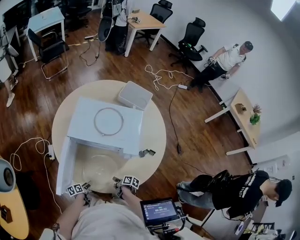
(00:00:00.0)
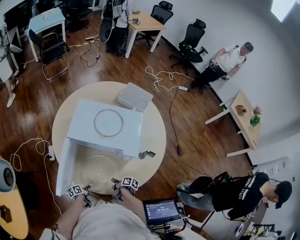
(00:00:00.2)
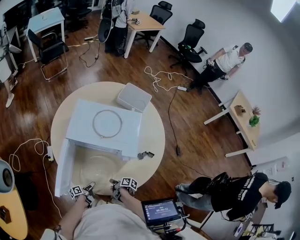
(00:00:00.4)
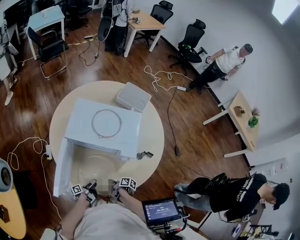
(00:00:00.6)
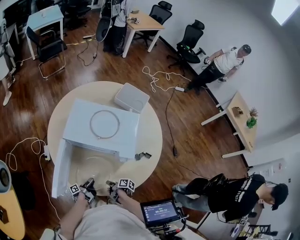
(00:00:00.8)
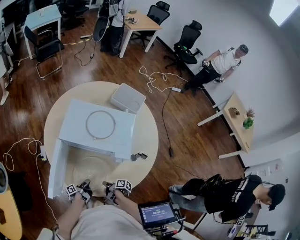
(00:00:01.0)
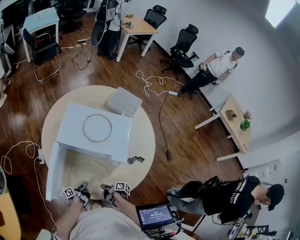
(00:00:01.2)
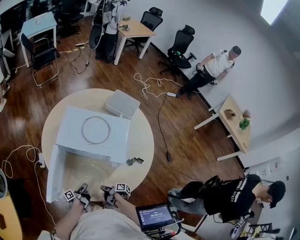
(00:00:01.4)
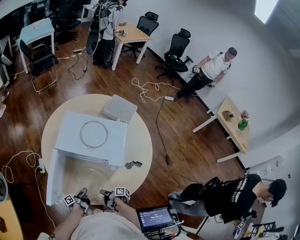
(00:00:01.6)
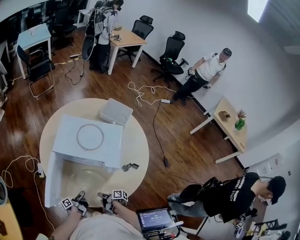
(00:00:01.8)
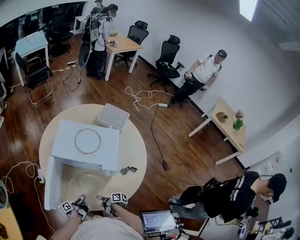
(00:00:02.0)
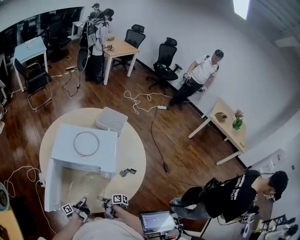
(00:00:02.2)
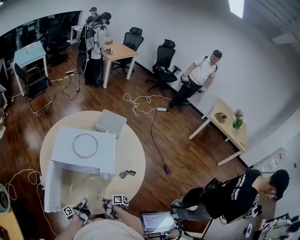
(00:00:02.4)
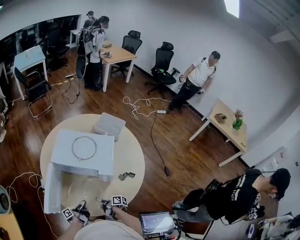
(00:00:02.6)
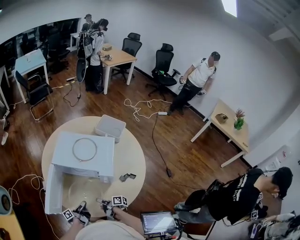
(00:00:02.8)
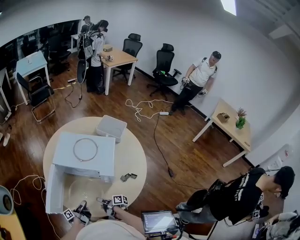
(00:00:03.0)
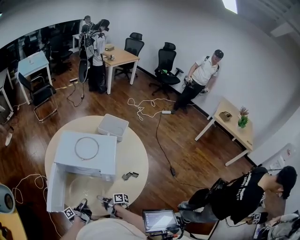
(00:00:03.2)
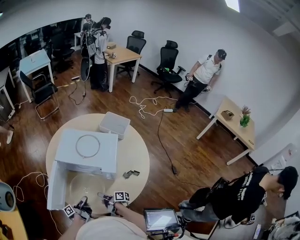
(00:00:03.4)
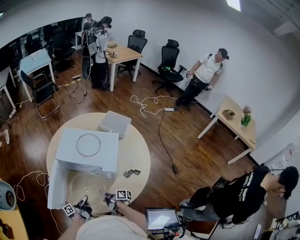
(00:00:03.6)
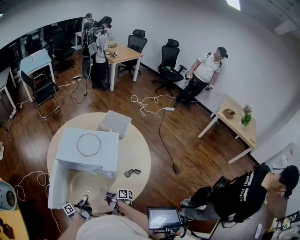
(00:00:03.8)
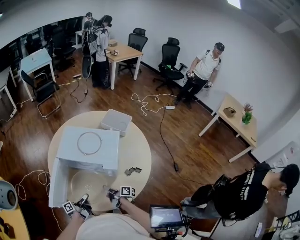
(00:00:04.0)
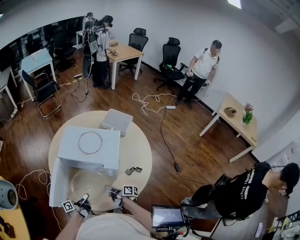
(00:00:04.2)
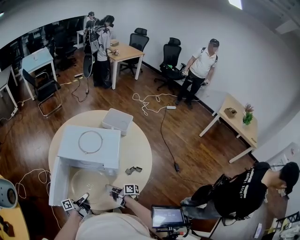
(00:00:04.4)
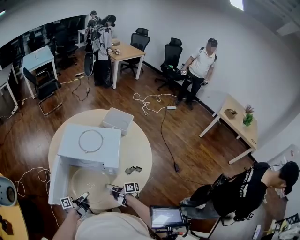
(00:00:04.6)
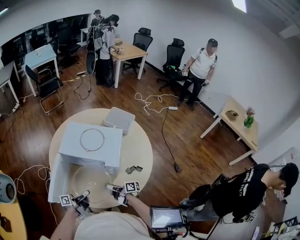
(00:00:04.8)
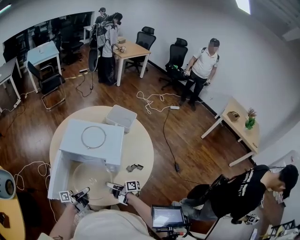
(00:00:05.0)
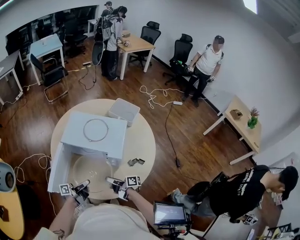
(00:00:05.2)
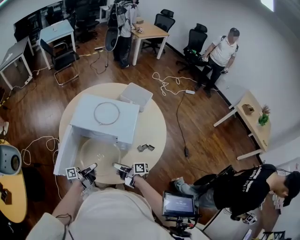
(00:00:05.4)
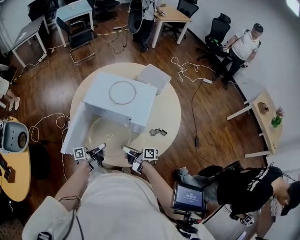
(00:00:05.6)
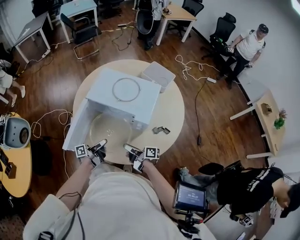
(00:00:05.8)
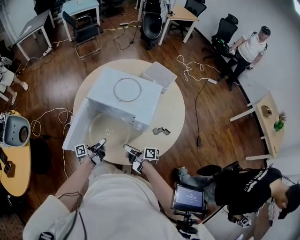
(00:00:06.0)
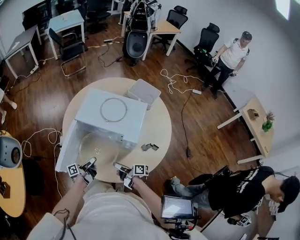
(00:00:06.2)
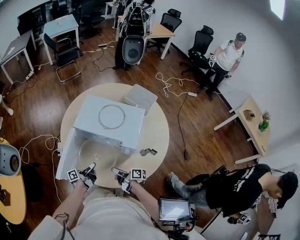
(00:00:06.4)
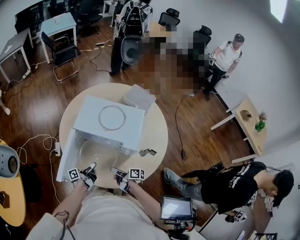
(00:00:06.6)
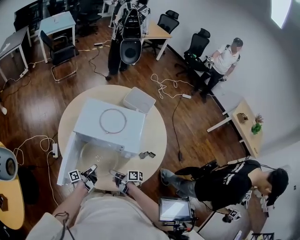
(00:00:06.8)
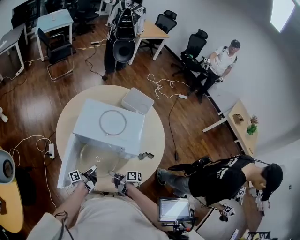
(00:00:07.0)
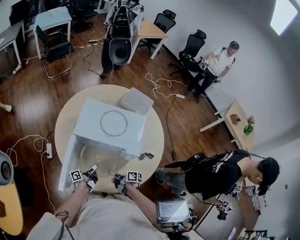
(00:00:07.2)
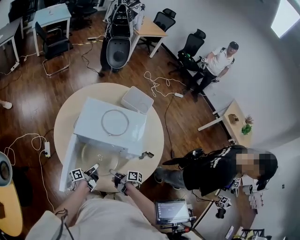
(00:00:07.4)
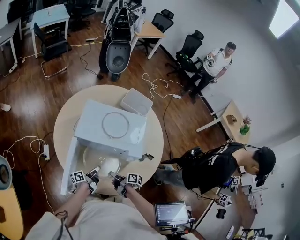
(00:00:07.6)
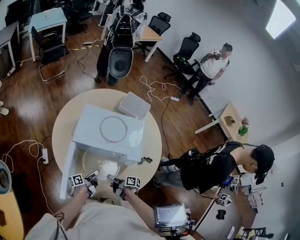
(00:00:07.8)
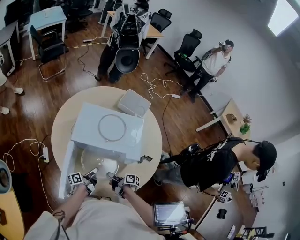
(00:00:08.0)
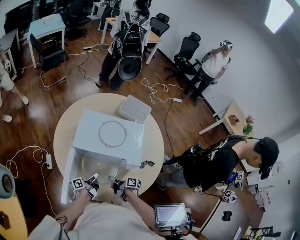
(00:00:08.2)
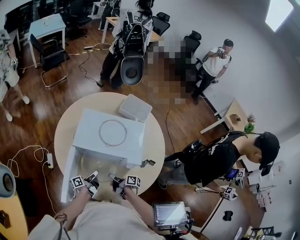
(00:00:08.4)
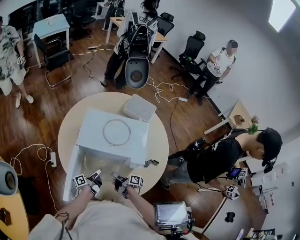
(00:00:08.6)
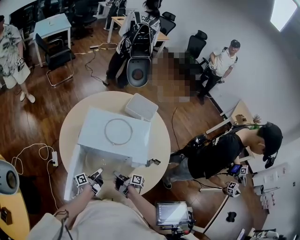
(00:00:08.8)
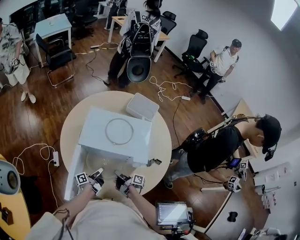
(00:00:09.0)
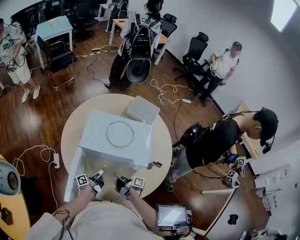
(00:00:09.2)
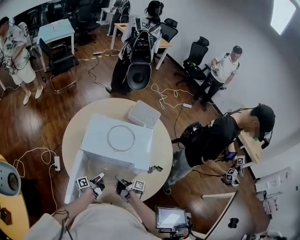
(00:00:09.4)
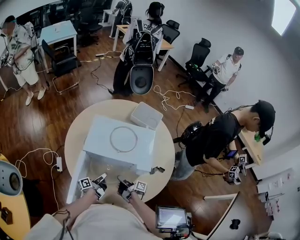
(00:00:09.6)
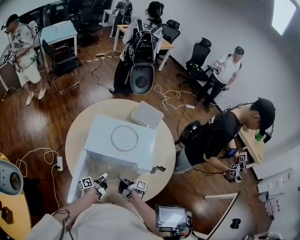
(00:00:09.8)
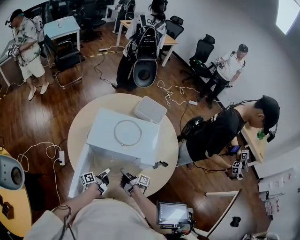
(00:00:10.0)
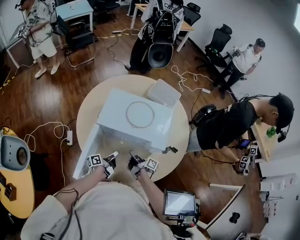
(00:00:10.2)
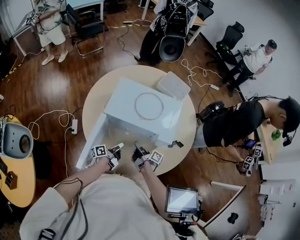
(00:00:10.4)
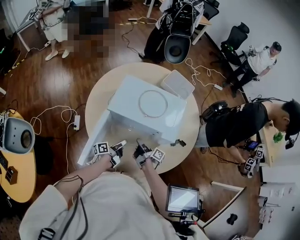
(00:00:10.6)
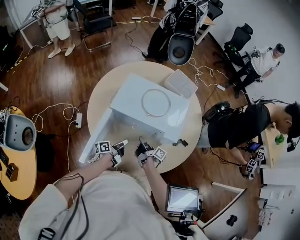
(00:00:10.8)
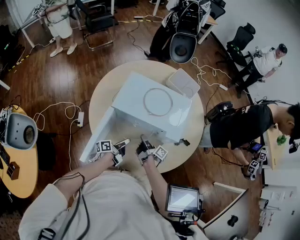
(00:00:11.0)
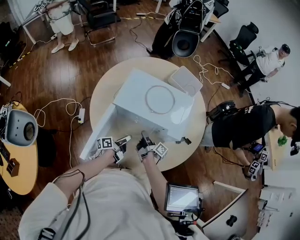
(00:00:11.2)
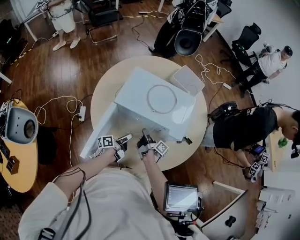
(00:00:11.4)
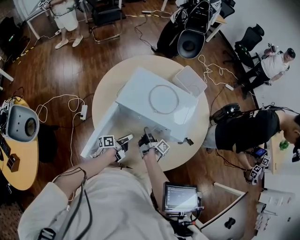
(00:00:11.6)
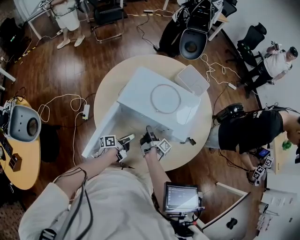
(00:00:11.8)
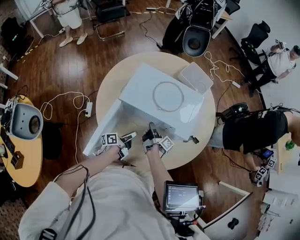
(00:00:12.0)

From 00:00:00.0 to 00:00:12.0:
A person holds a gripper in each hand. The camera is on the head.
From 00:00:00.0 to 00:00:01.6: The left gripper moves to the right and upward, roughly 10 cm, rotates about 40 degrees, and closes its fingers.
From 00:00:01.6 to 00:00:03.0: Both grippers move upward, roughly 10 cm. The right gripper swivels about 20 degrees, and opens.
From 00:00:03.0 to 00:00:04.4: The right gripper heads upward and to the right, covering about 10 cm. Meanwhile the left gripper is displaced upward by roughly 5 cm.
From 00:00:04.4 to 00:00:06.0: The right gripper shifts by some 5 cm.
From 00:00:06.0 to 00:00:07.6: The left gripper travels forward and downward by about 10 cm. Meanwhile the right gripper heads downward, to the left and forward, covering some 10 cm, and rotates about 30 degrees.
From 00:00:07.6 to 00:00:09.0: The right gripper ends up some 5 cm from where it was, and closes its fingers.
From 00:00:09.0 to 00:00:10.4: The grippers stay close to where they were, moving slightly.
From 00:00:10.4 to 00:00:12.0: The right gripper travels forward by about 5 cm.

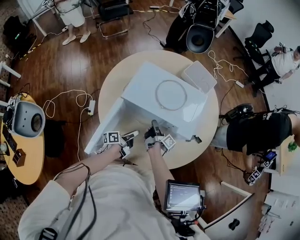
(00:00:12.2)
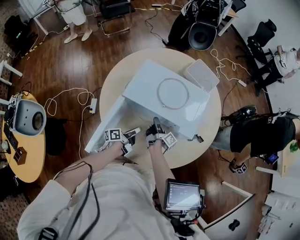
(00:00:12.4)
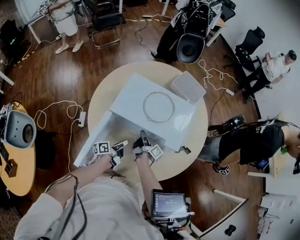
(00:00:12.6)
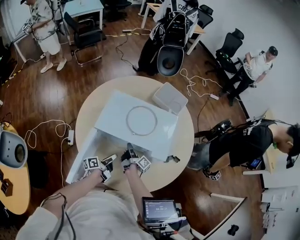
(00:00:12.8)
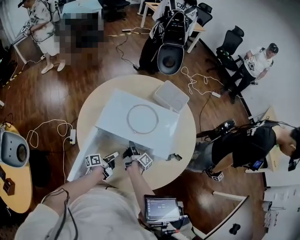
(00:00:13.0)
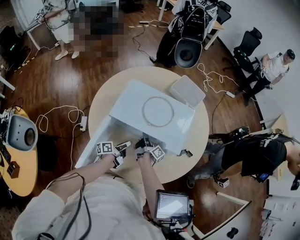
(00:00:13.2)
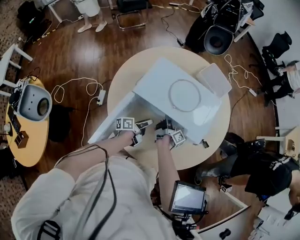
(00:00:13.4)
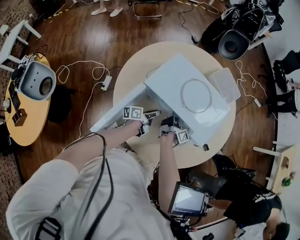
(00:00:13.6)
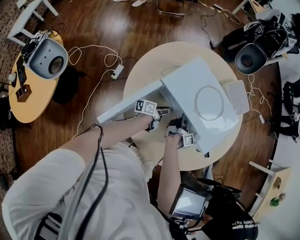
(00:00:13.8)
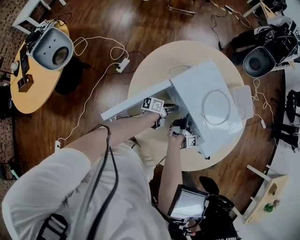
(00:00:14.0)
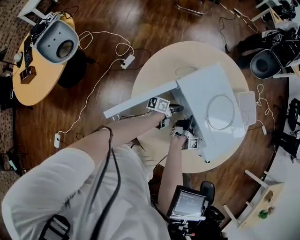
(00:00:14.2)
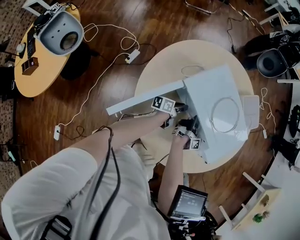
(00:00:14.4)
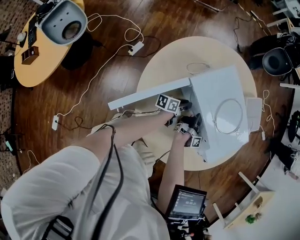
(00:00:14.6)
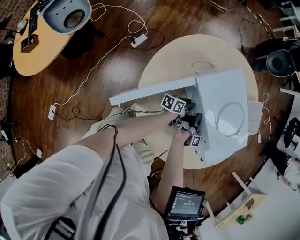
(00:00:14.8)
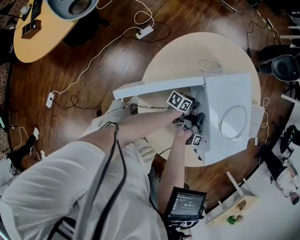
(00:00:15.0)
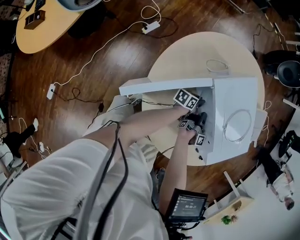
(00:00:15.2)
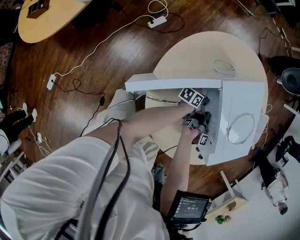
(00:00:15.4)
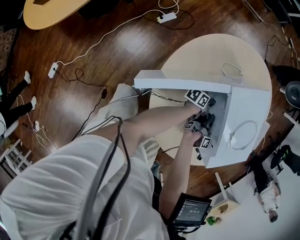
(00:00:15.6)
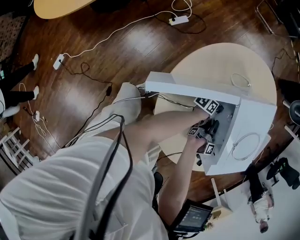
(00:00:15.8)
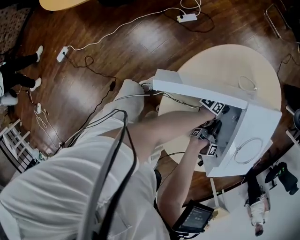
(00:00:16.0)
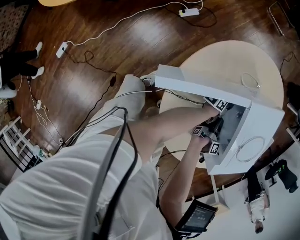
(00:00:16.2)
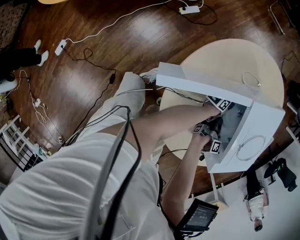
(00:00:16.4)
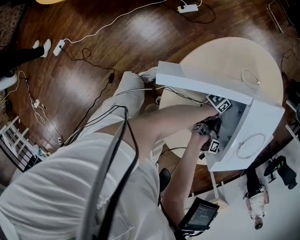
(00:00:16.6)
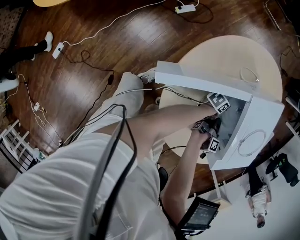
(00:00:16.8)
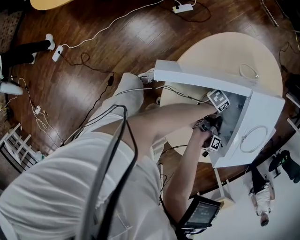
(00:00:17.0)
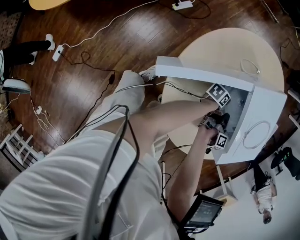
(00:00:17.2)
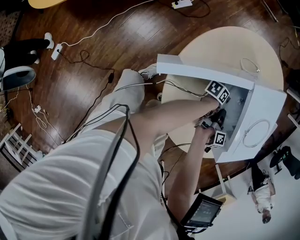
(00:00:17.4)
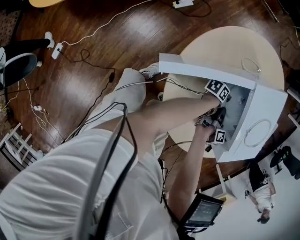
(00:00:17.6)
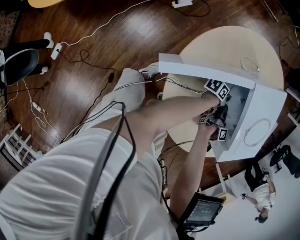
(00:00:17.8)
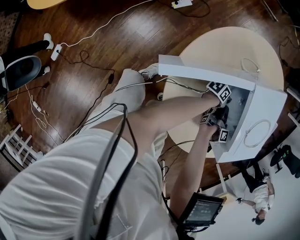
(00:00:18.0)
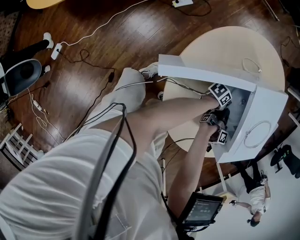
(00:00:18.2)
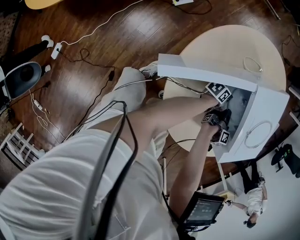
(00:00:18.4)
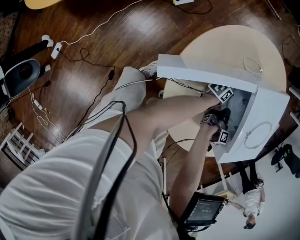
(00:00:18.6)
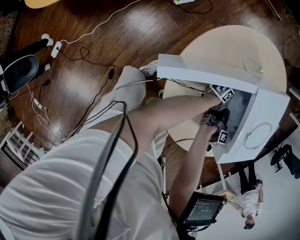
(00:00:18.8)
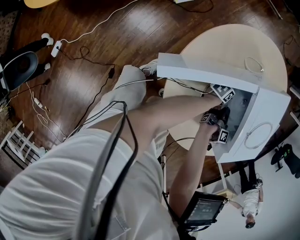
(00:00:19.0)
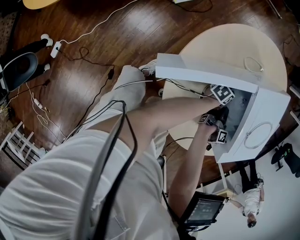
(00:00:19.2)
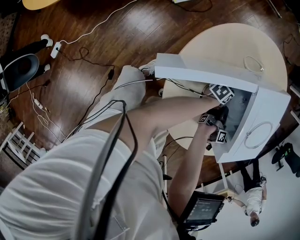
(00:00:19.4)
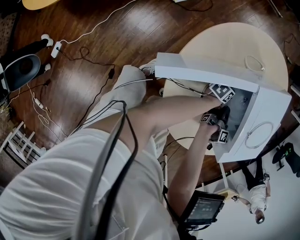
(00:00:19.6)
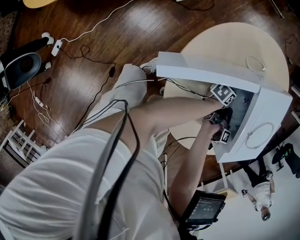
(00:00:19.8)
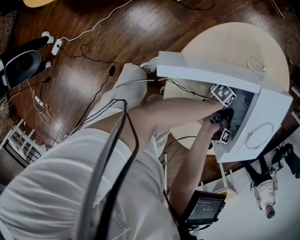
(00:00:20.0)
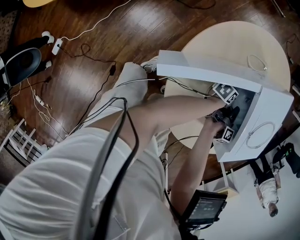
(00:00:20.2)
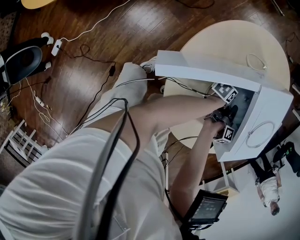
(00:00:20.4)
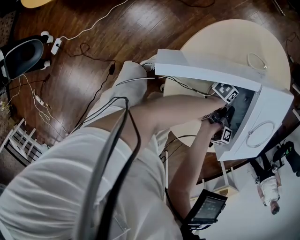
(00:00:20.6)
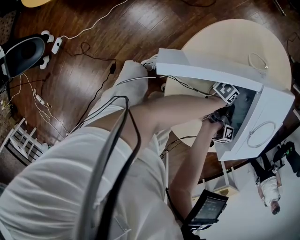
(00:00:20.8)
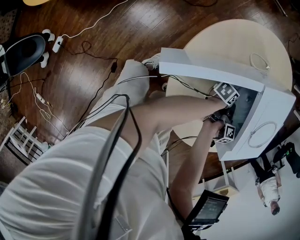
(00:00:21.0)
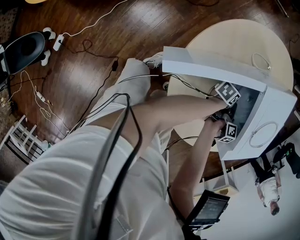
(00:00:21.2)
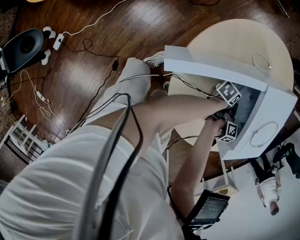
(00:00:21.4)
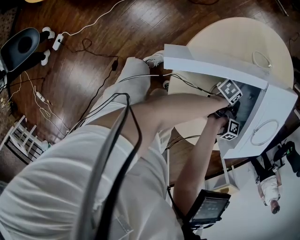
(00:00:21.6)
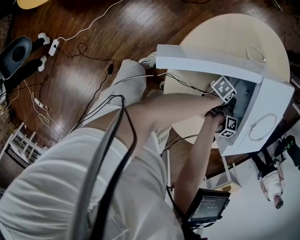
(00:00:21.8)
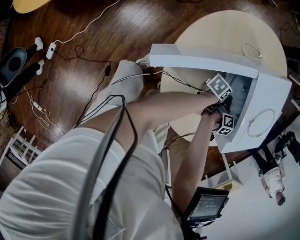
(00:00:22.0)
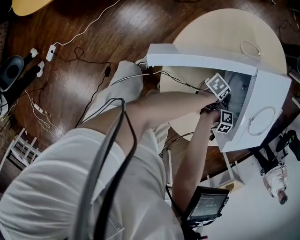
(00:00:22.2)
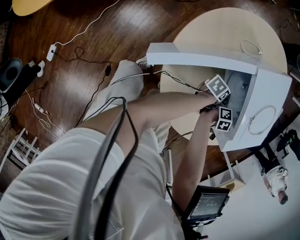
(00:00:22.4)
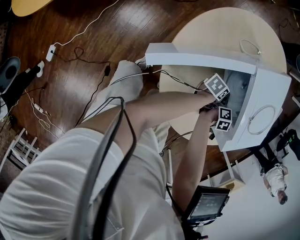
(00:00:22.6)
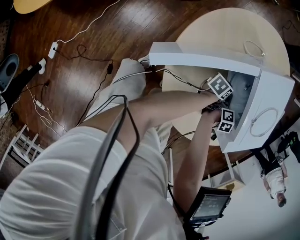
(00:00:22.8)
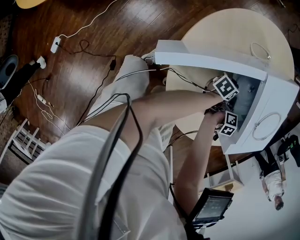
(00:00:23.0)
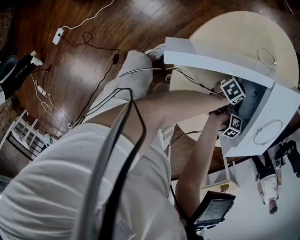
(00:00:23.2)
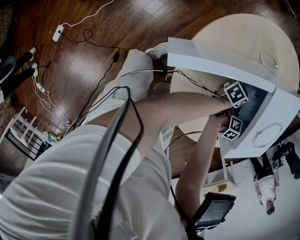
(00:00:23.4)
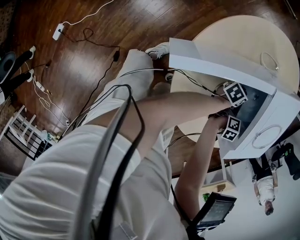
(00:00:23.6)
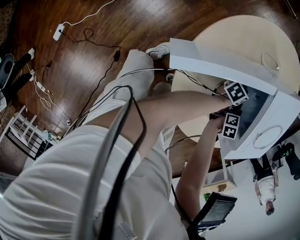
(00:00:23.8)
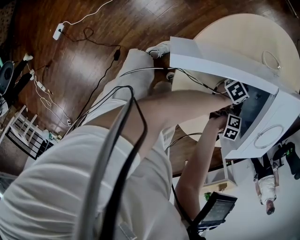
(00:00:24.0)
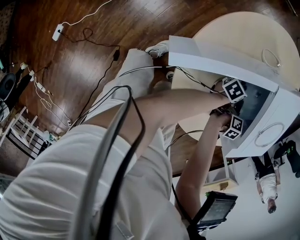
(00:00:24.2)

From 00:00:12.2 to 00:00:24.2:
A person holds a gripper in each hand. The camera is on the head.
From 00:00:12.2 to 00:00:13.8: The right gripper travels forward by about 5 cm, while the left gripper heads forward, covering roughly 10 cm.
From 00:00:13.8 to 00:00:15.2: The left gripper moves downward, roughly 5 cm.
From 00:00:15.2 to 00:00:16.6: The right gripper changes its angle by some 20 degrees.
From 00:00:16.6 to 00:00:19.8: The grippers move only a little.
From 00:00:19.8 to 00:00:21.2: The right gripper swivels approximately 20 degrees, and opens its fingers.
From 00:00:21.2 to 00:00:22.6: The left gripper changes place by roughly 5 cm. The right gripper rotates approximately 20 degrees.
From 00:00:22.6 to 00:00:24.2: The left gripper travels to the left by approximately 5 cm.
